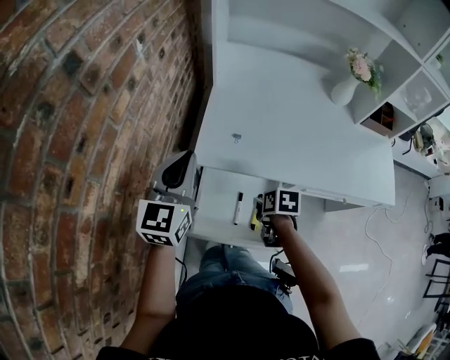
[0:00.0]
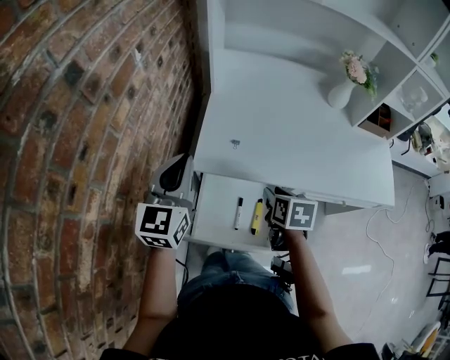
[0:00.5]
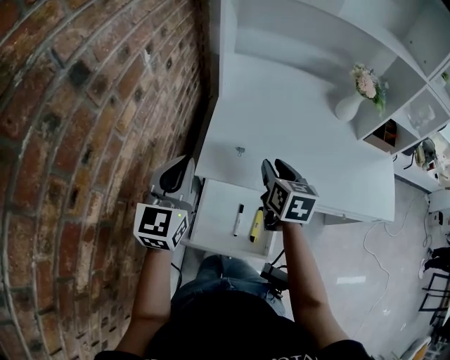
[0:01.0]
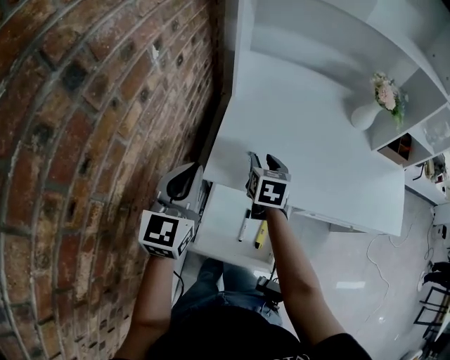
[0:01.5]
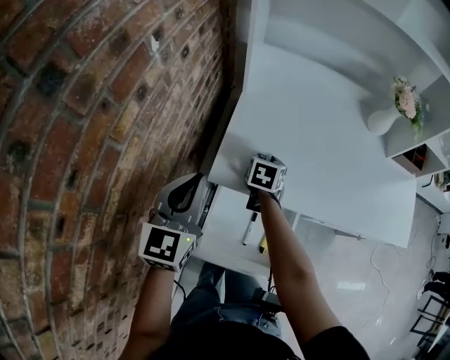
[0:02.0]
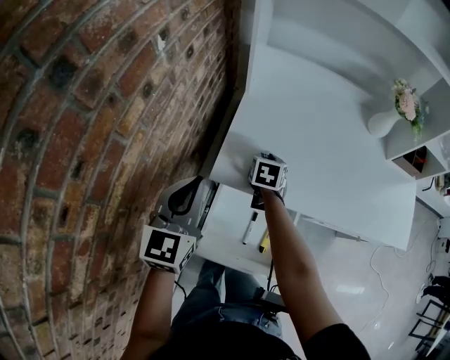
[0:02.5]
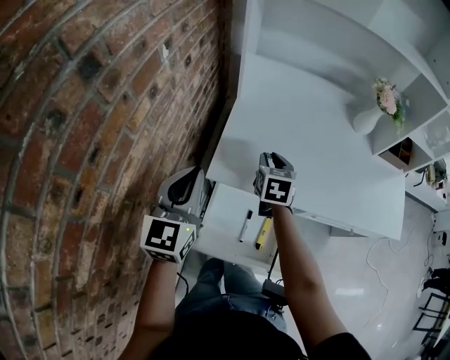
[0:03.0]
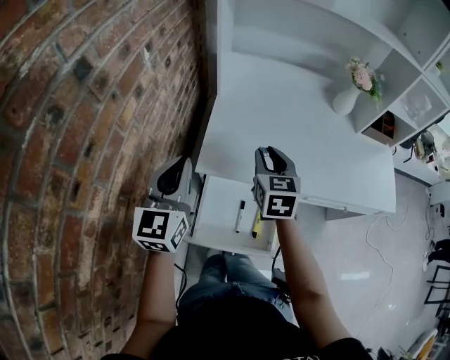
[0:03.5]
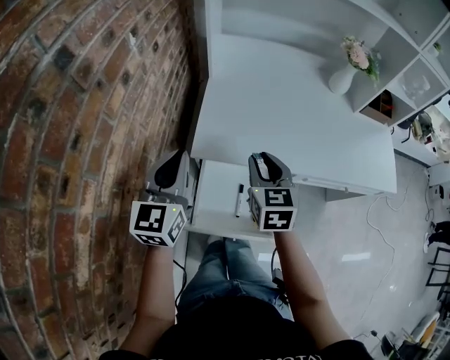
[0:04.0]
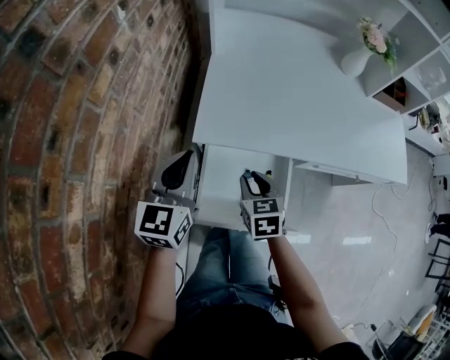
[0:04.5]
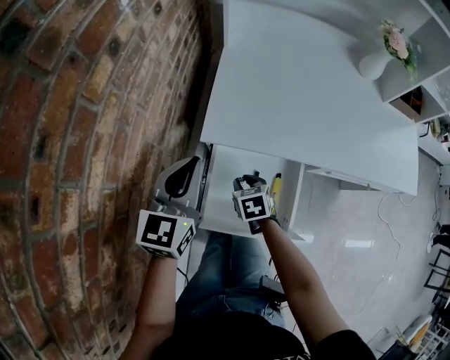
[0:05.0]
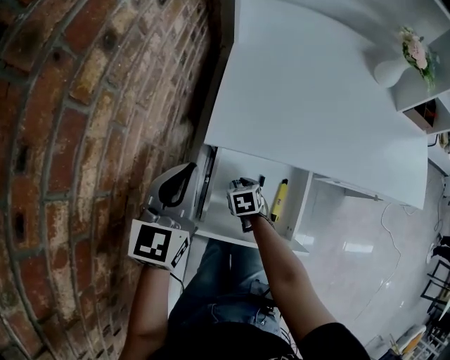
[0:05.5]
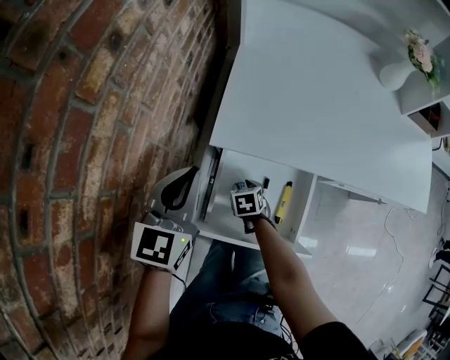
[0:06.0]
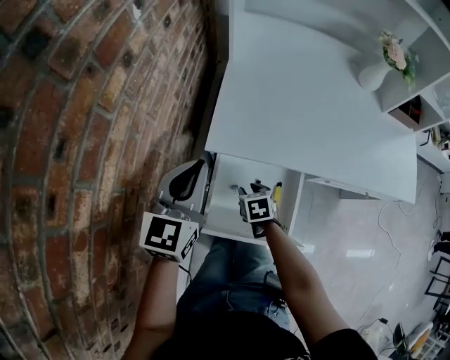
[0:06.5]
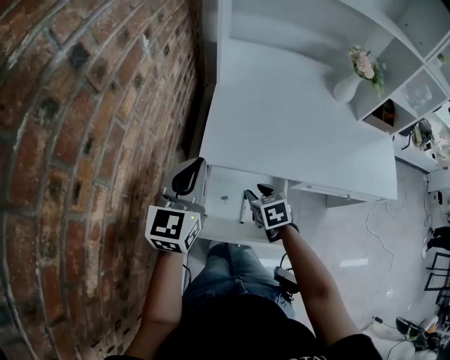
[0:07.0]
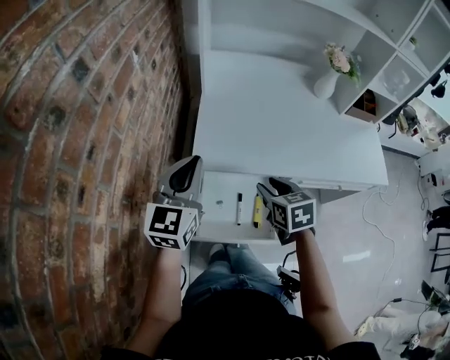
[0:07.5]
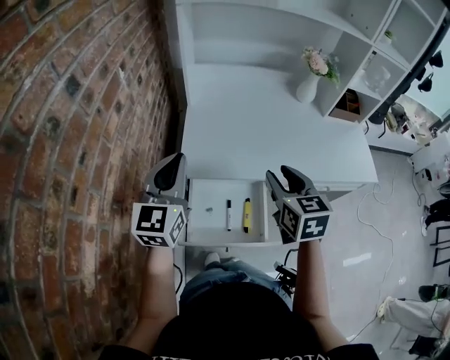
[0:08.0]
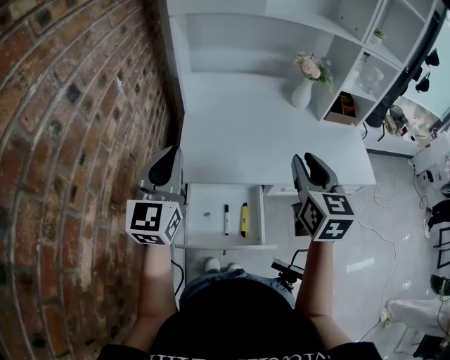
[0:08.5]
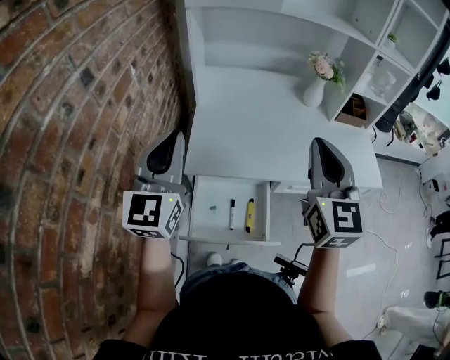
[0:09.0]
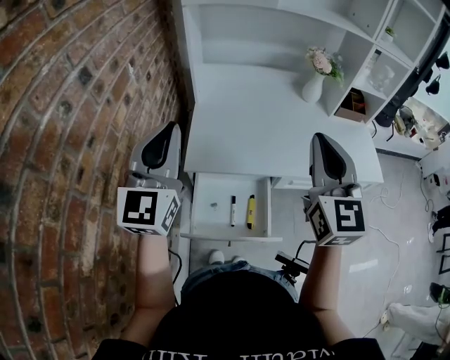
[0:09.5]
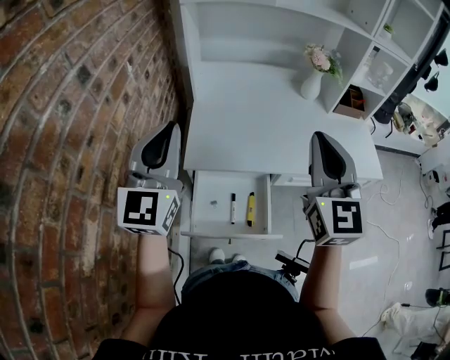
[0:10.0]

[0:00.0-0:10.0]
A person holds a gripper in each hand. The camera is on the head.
0:00.0 to 0:02.0: The right gripper travels forward by some 25 cm, and changes its angle by some 30 degrees. The left gripper changes place by approximately 5 cm.
0:02.0 to 0:04.0: The left gripper ends up approximately 5 cm from where it was. The right gripper is displaced backward and upward by about 25 cm, and turns by approximately 20 degrees.
0:04.0 to 0:06.0: The left gripper heads downward, covering some 10 cm, while the right gripper travels downward by approximately 35 cm, and tips its fingers downward by about 40 degrees.
0:06.0 to 0:08.0: The right gripper shifts roughly 40 cm upward, and tilts its fingers roughly 40 degrees upward. Meanwhile the left gripper shifts roughly 15 cm upward.
0:08.0 to 0:10.0: The right gripper goes some 15 cm upward, angles its fingers upward, by about 30 degrees, and closes its fingers, while the left gripper is displaced upward by about 10 cm.

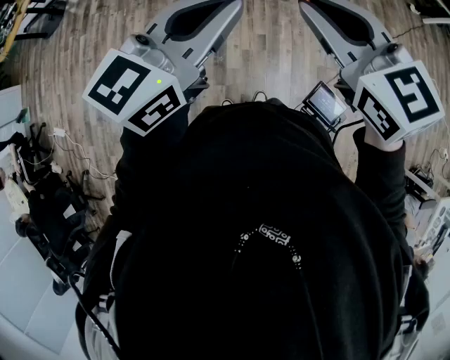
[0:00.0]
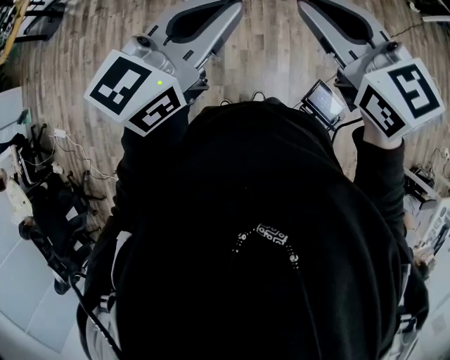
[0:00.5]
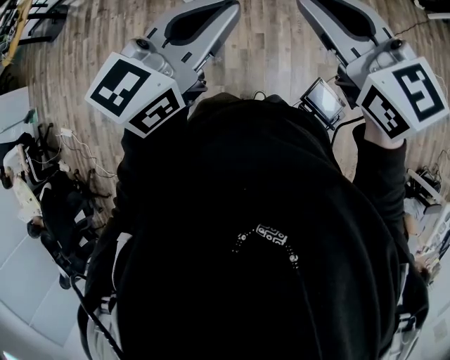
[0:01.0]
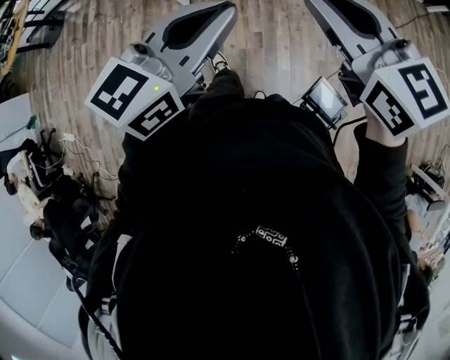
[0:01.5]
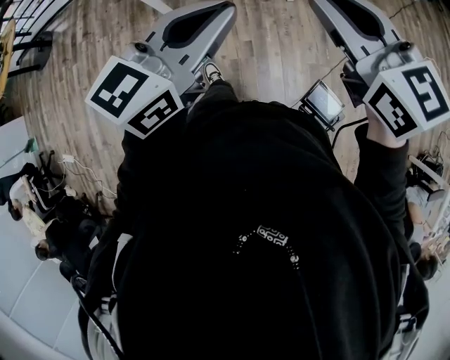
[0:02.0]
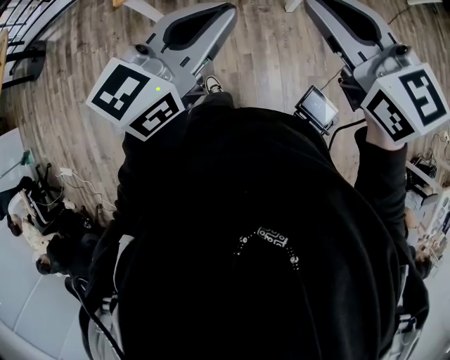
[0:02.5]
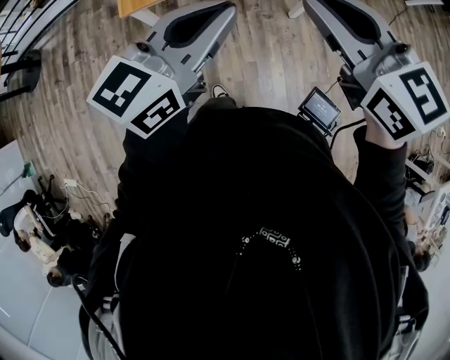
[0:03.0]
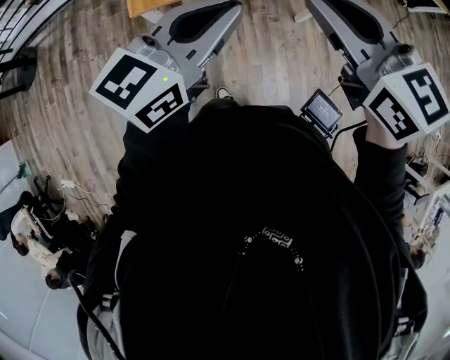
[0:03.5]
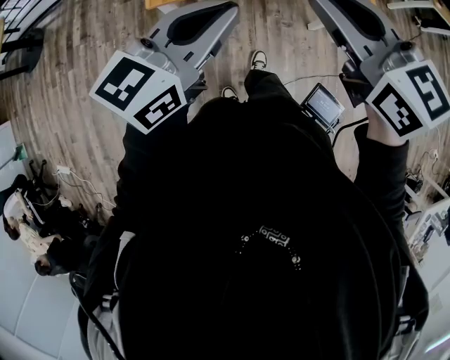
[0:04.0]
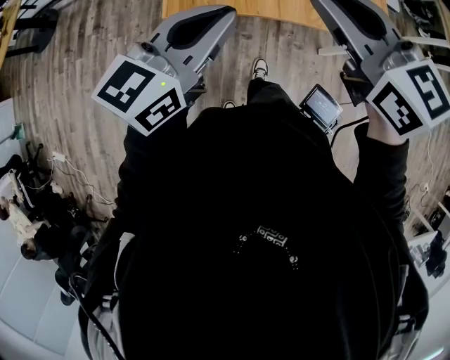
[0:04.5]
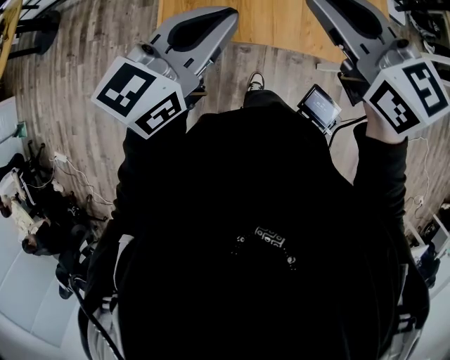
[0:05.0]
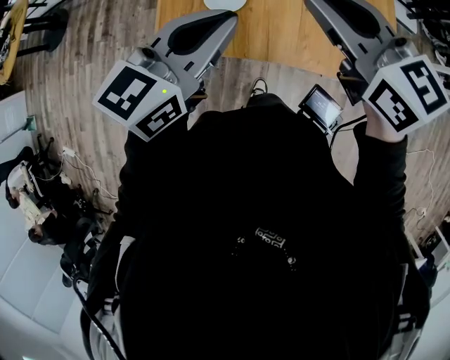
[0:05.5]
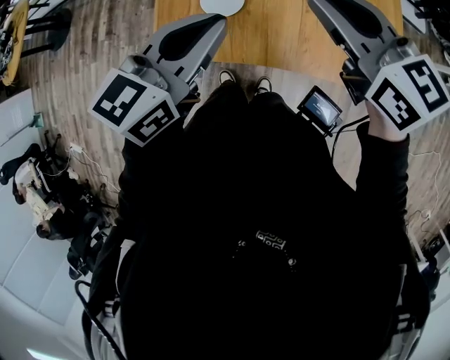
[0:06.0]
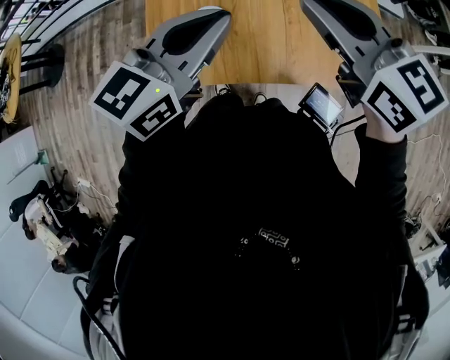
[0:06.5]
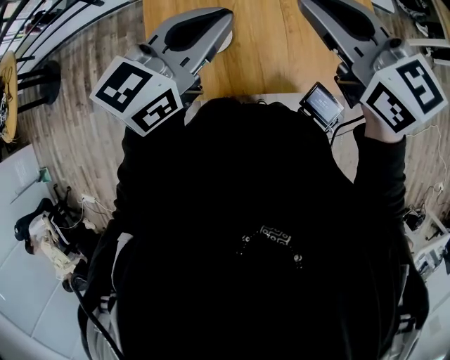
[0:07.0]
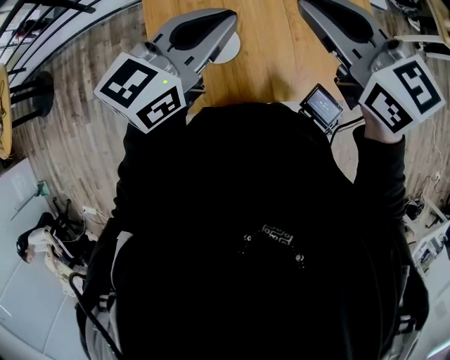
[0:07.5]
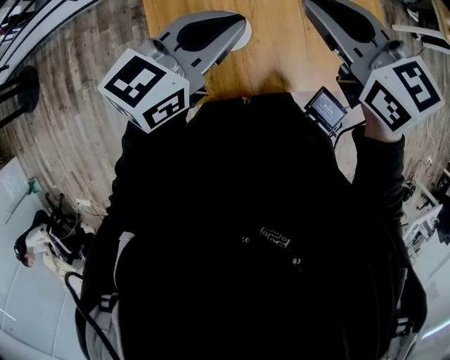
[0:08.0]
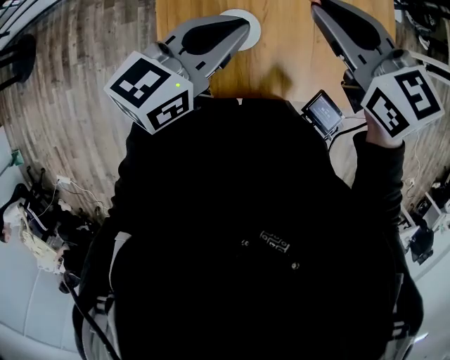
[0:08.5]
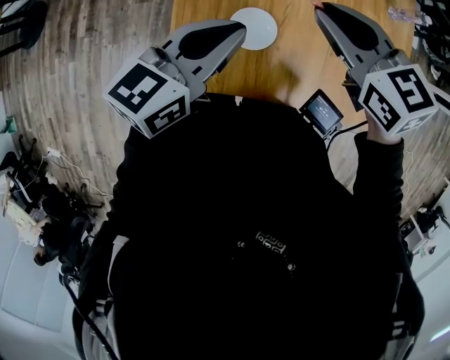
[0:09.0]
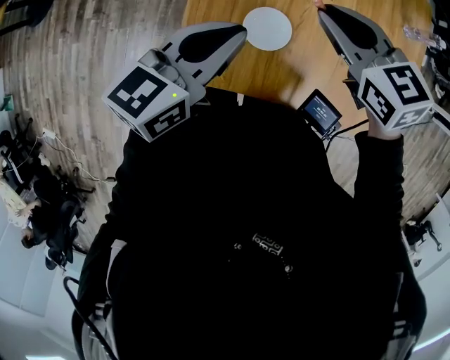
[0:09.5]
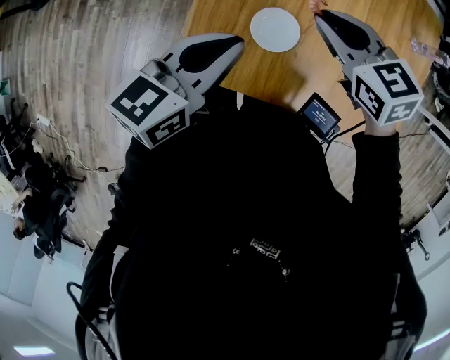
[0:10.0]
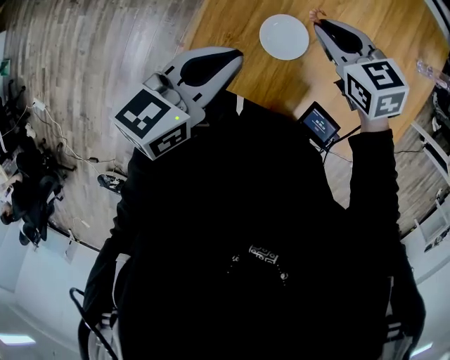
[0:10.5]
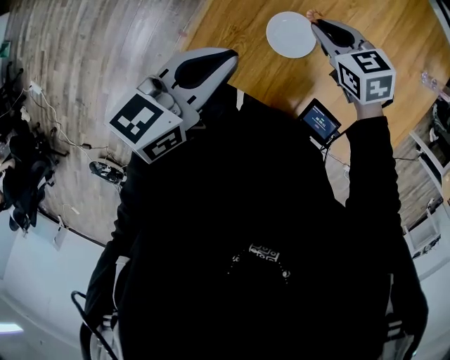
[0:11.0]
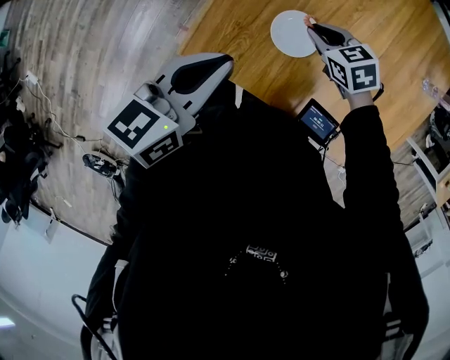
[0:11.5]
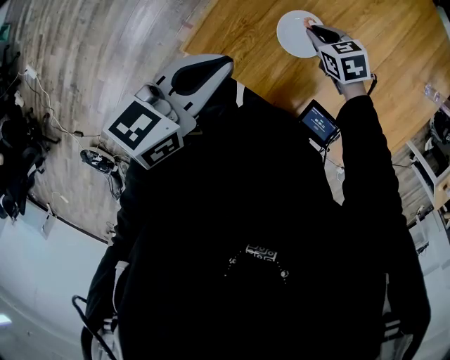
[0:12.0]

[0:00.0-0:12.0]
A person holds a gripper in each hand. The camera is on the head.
0:00.0 to 0:02.0: The right gripper is displaced to the right and forward by approximately 15 cm. Meanwhile the left gripper shifts approximately 10 cm forward and to the right.
0:02.0 to 0:04.0: The two grippers go about 30 cm forward and to the left.
0:04.0 to 0:06.0: The two grippers go approximately 25 cm forward.
0:06.0 to 0:08.0: The left gripper moves forward, some 10 cm, and turns by roughly 20 degrees. The right gripper goes roughly 10 cm to the left and forward.
0:08.0 to 0:10.0: The right gripper shifts some 10 cm downward, and turns by some 30 degrees. The left gripper travels backward and to the left by roughly 15 cm, and rotates approximately 30 degrees.
0:10.0 to 0:12.0: The left gripper shifts approximately 5 cm backward. Meanwhile the right gripper heads downward, covering approximately 20 cm, and swivels about 20 degrees.

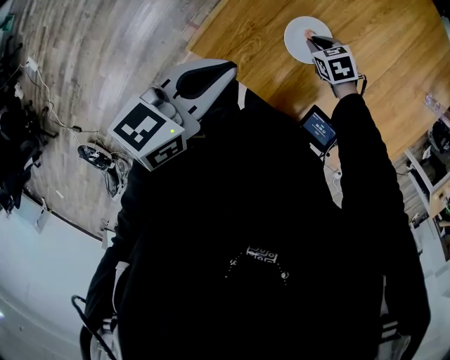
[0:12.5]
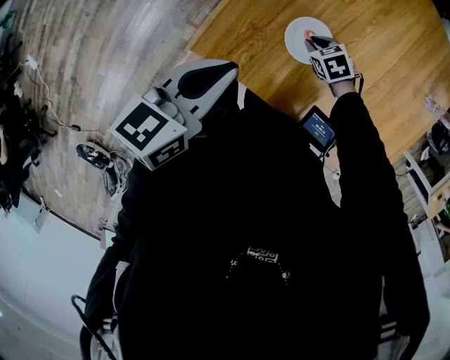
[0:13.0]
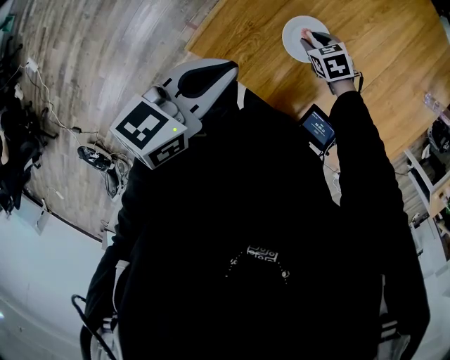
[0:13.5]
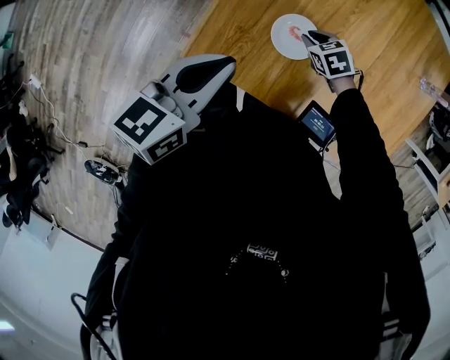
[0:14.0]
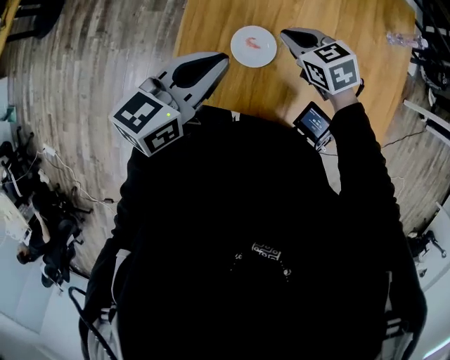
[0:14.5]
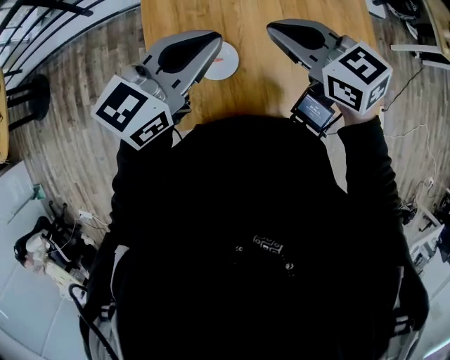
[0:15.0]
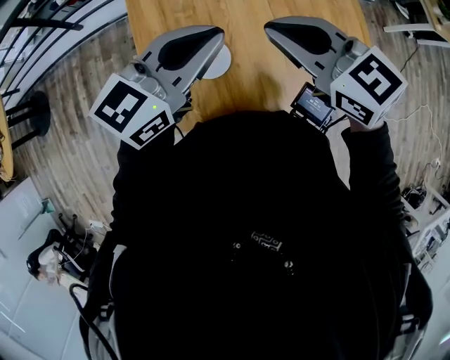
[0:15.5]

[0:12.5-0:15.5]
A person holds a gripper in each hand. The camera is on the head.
0:12.5 to 0:14.0: The grippers move only a little.
0:14.0 to 0:15.5: The right gripper shifts about 35 cm upward, and points its fingers about 50 degrees further upward. Meanwhile the left gripper ends up approximately 25 cm from where it was, and swivels roughly 50 degrees.

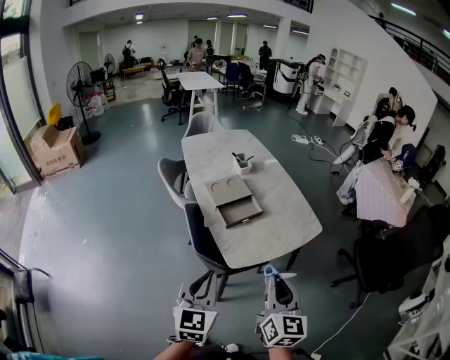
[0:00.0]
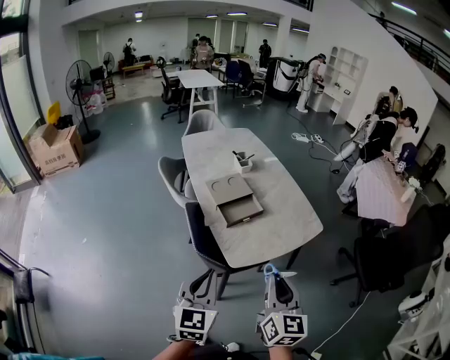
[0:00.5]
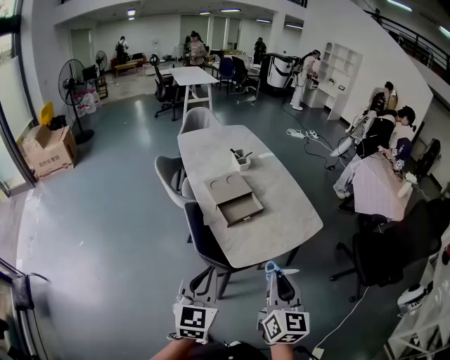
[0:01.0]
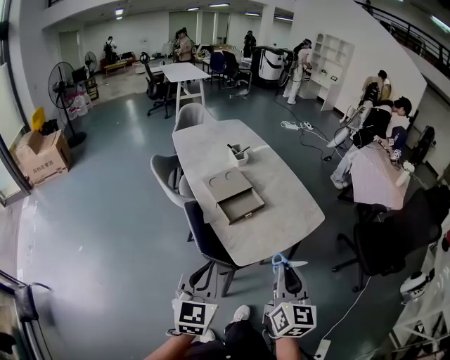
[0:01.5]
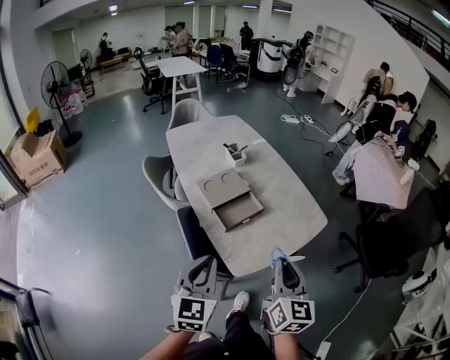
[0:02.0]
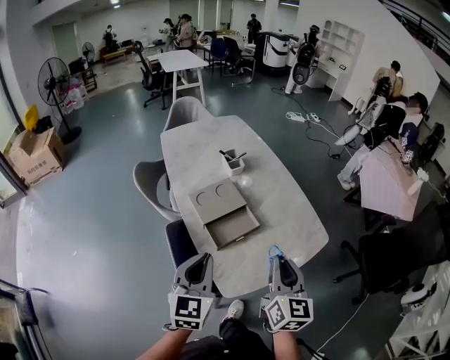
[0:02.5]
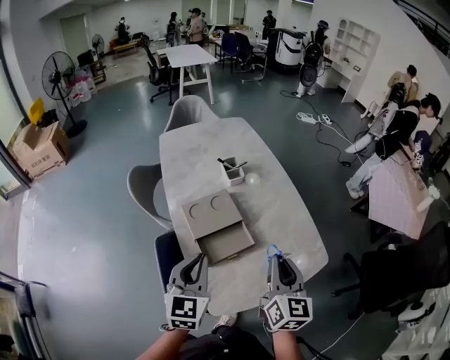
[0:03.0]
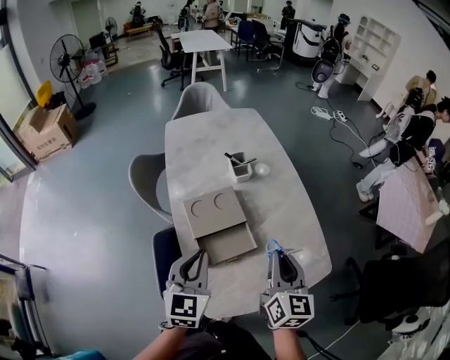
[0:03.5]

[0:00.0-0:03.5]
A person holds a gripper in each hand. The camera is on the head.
0:00.0 to 0:02.0: Both grippers move forward, roughly 10 cm.
0:02.0 to 0:03.5: The two grippers go about 25 cm forward.
